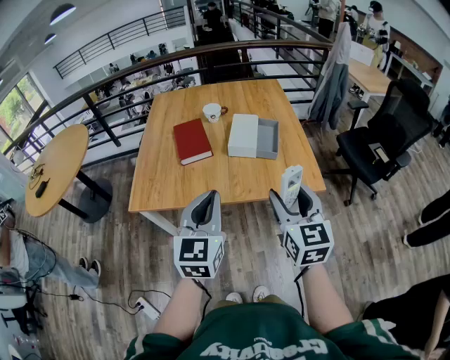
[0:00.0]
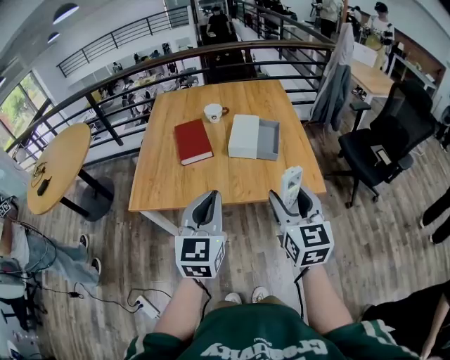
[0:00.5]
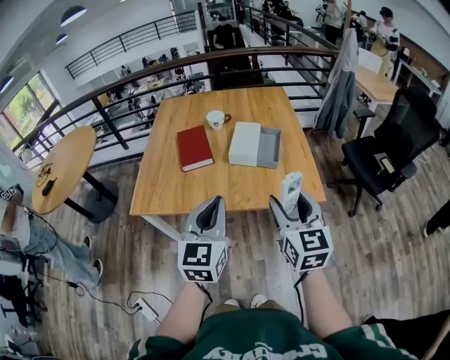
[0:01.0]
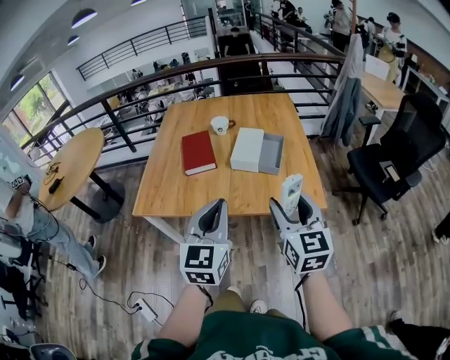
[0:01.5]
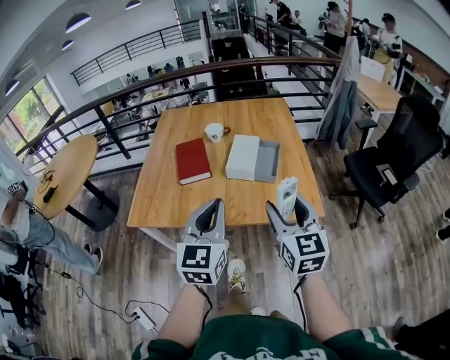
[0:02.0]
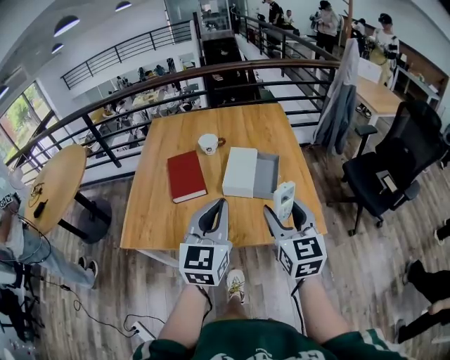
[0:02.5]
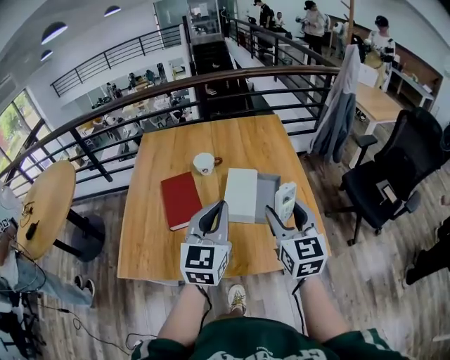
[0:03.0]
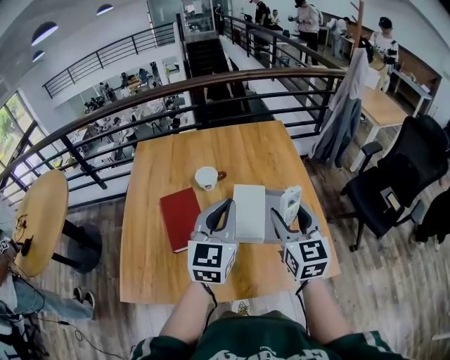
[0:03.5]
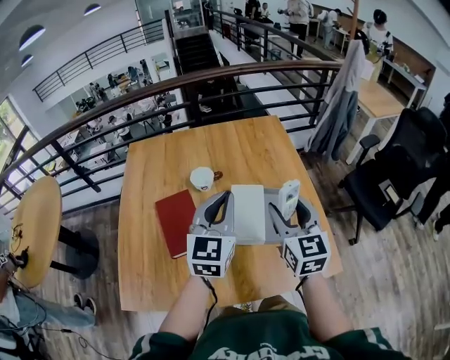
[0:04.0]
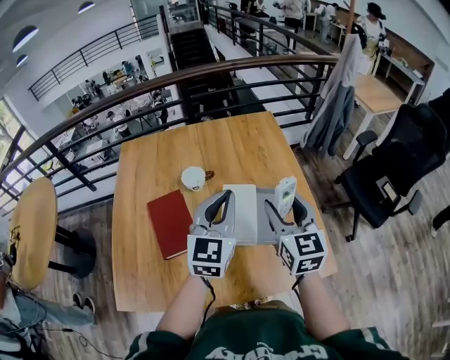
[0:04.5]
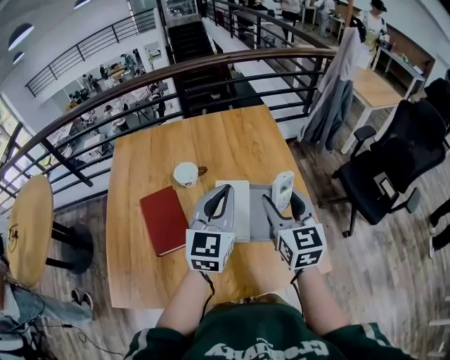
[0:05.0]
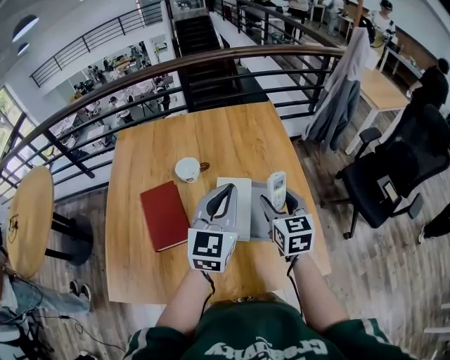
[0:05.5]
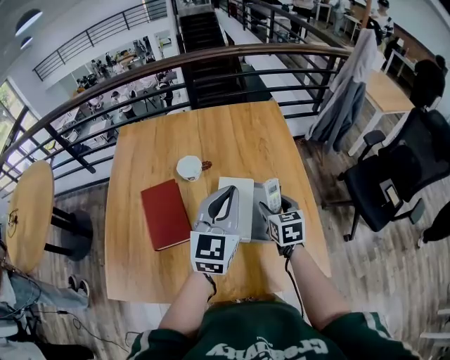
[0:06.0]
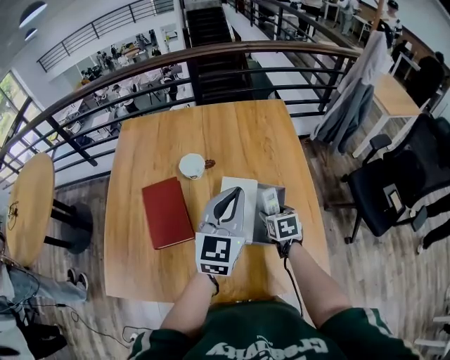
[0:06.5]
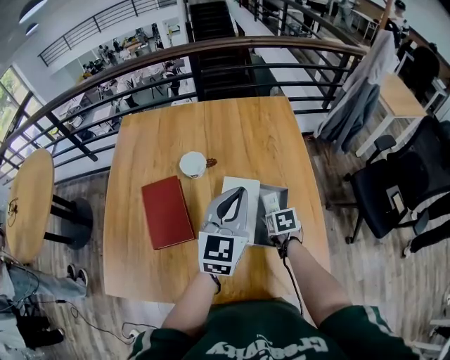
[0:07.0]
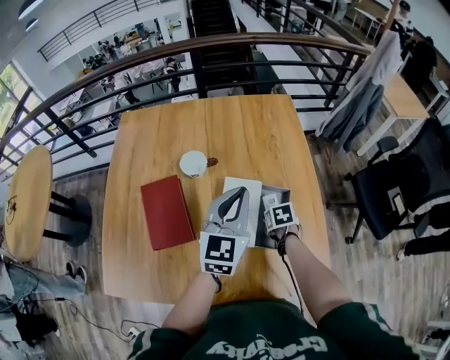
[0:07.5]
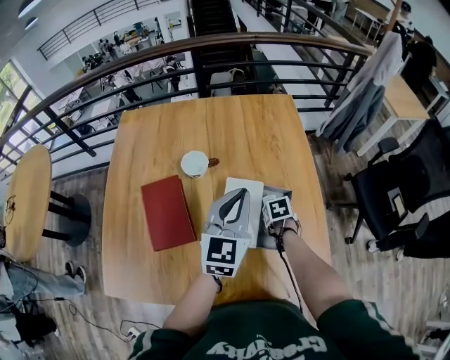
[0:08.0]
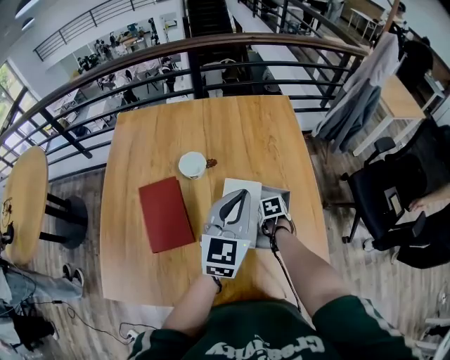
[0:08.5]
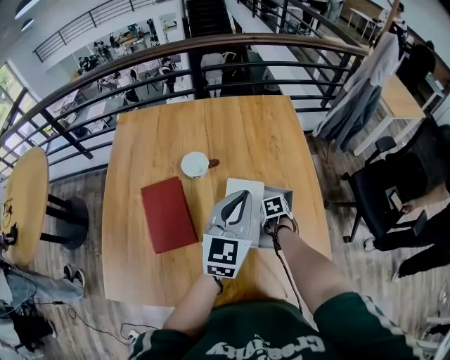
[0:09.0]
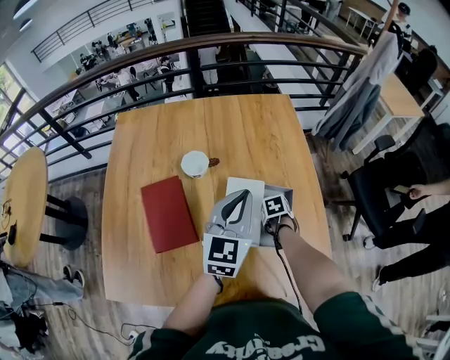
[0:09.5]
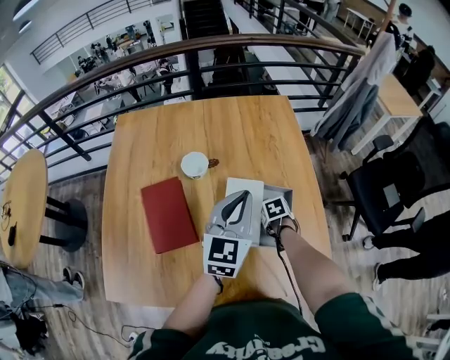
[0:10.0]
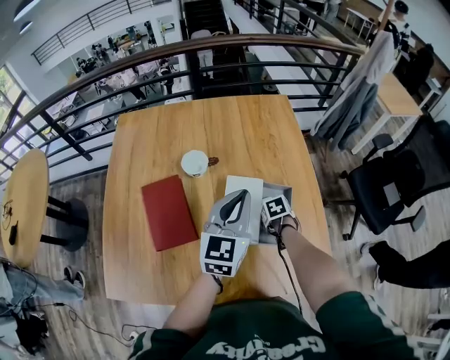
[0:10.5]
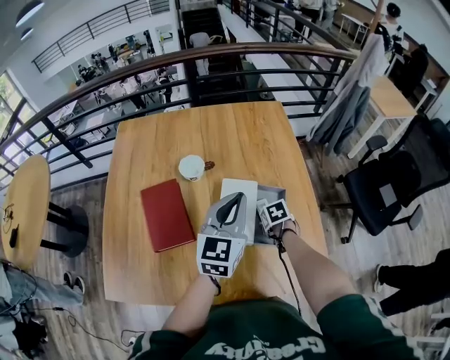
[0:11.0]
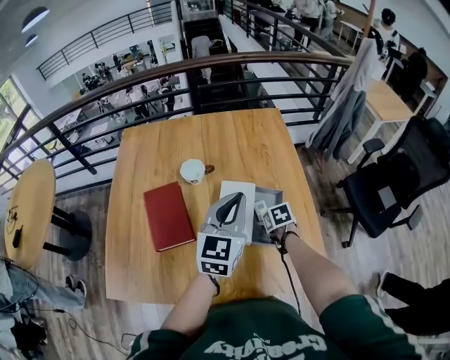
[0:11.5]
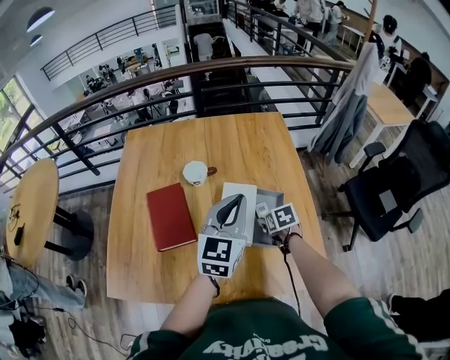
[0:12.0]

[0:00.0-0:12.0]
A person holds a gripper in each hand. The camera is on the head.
0:00.0 to 0:02.0: The right gripper is displaced forward by some 5 cm. The left gripper travels to the right by approximately 5 cm.
0:02.0 to 0:04.0: Both grippers travel together forward, some 35 cm.
0:04.0 to 0:06.0: The right gripper moves downward and forward, about 20 cm, and turns by approximately 30 degrees, while the left gripper travels to the right by some 5 cm.
0:06.0 to 0:08.0: The right gripper travels downward by some 15 cm, and points its fingers approximately 40 degrees further downward. The left gripper changes place by some 5 cm.
0:08.0 to 0:10.0: The grippers move only a little.
0:10.0 to 0:12.0: The right gripper travels upward by about 10 cm, and rotates roughly 20 degrees. Meanwhile the left gripper shifts by approximately 5 cm.

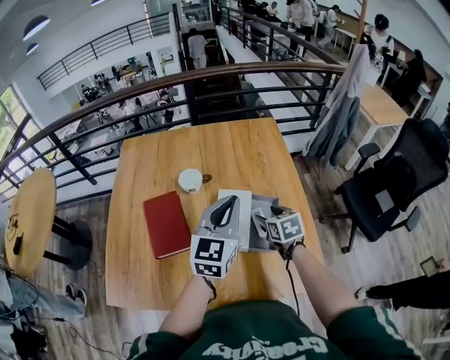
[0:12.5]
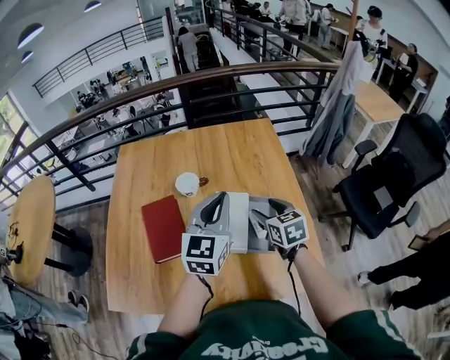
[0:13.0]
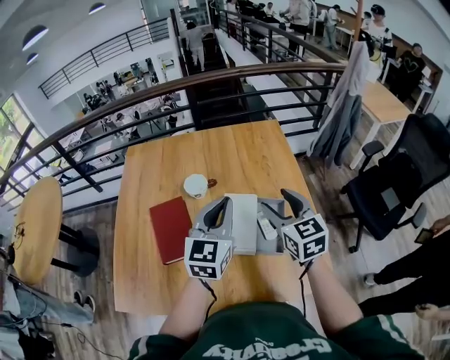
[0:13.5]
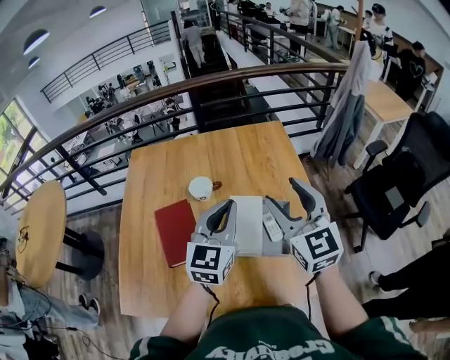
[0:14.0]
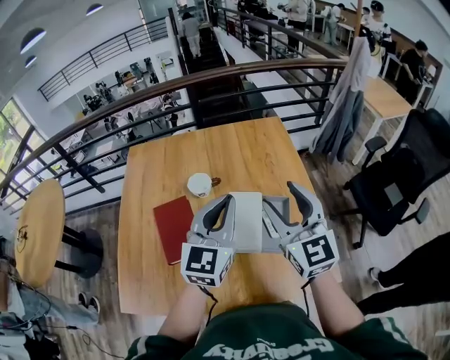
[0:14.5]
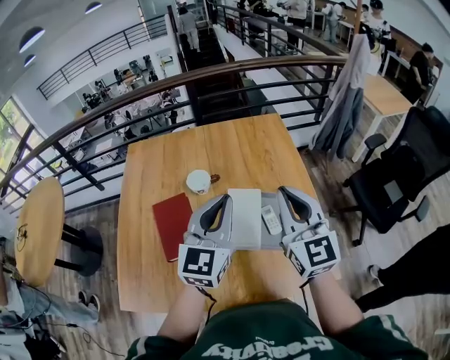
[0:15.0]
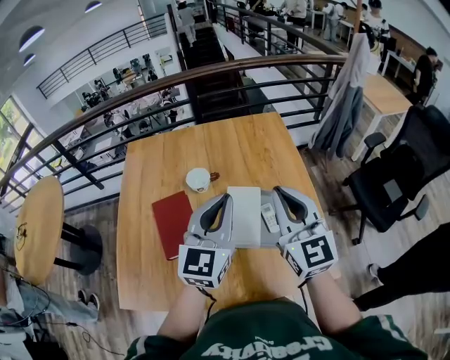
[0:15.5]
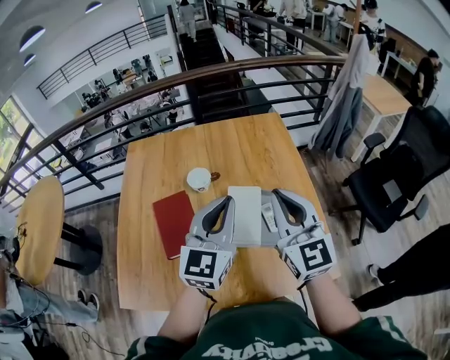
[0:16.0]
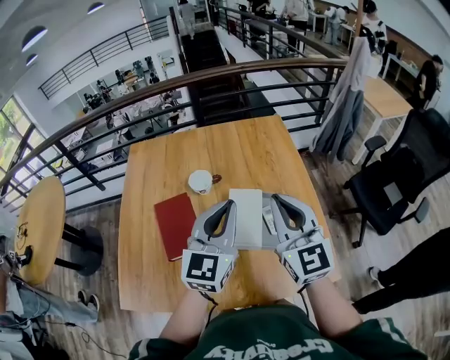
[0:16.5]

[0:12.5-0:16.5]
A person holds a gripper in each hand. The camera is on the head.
0:12.5 to 0:14.5: The left gripper changes place by about 5 cm, while the right gripper goes approximately 25 cm upward, and points its fingers roughly 40 degrees further upward.
0:14.5 to 0:16.5: The right gripper closes its fingers.

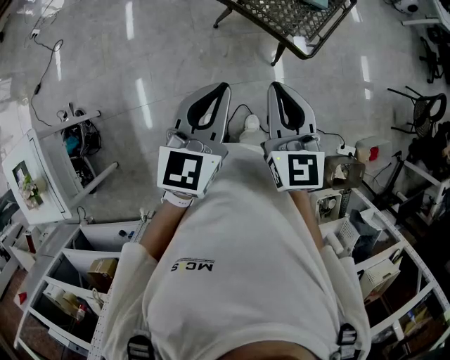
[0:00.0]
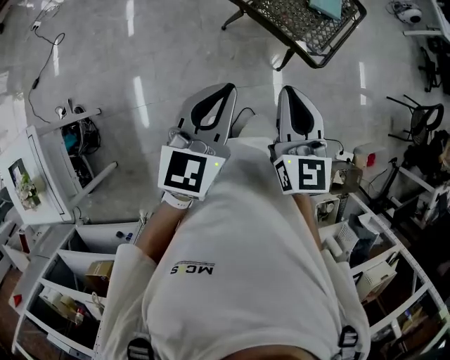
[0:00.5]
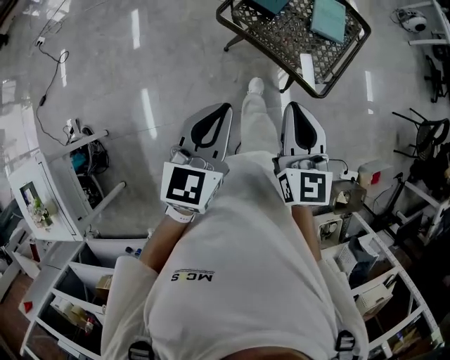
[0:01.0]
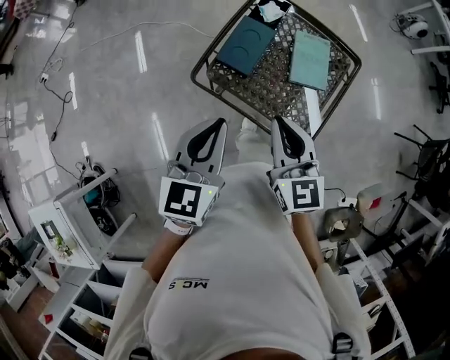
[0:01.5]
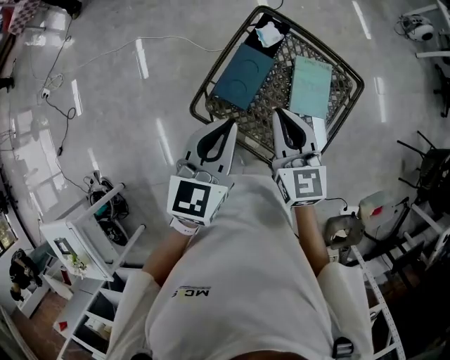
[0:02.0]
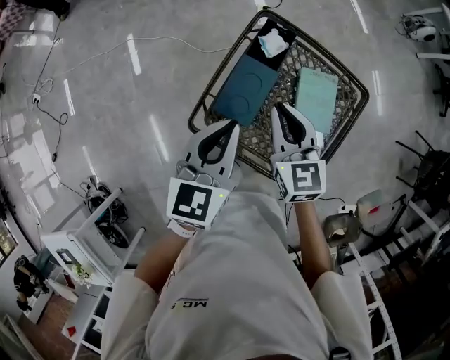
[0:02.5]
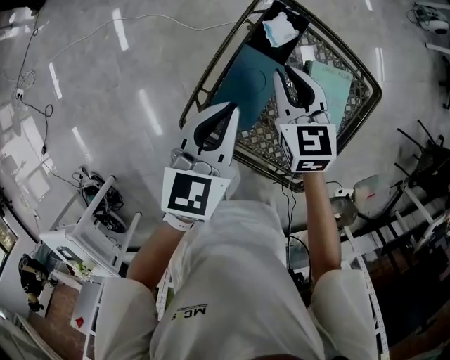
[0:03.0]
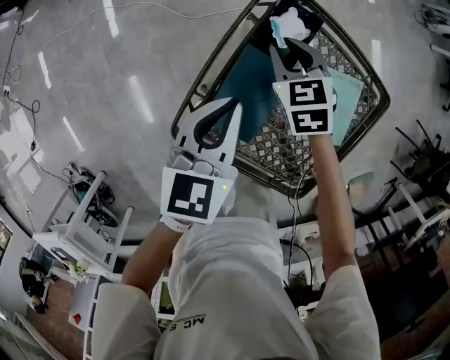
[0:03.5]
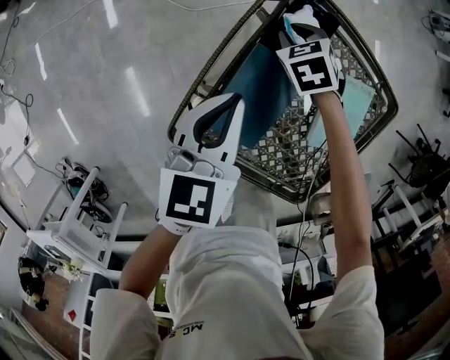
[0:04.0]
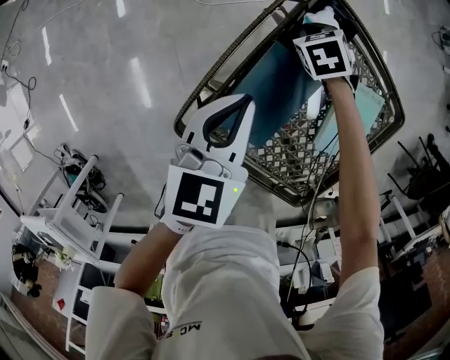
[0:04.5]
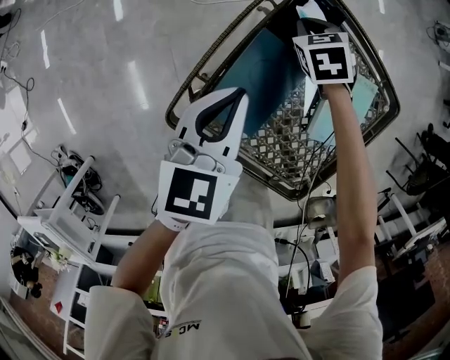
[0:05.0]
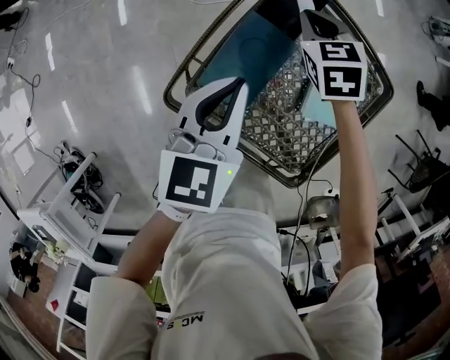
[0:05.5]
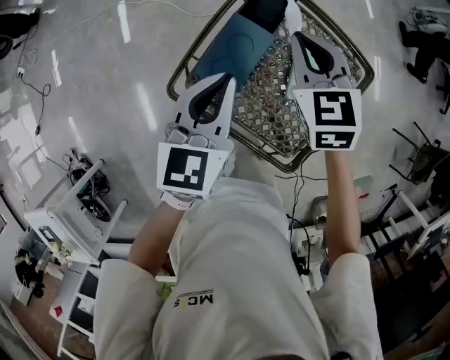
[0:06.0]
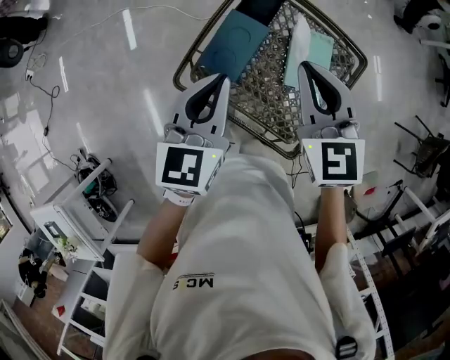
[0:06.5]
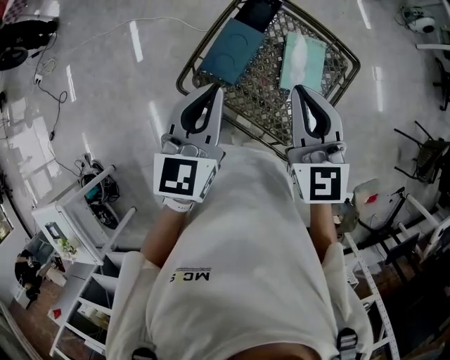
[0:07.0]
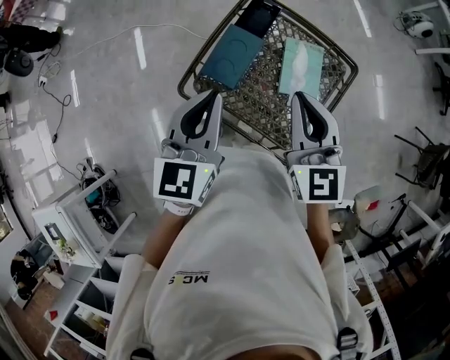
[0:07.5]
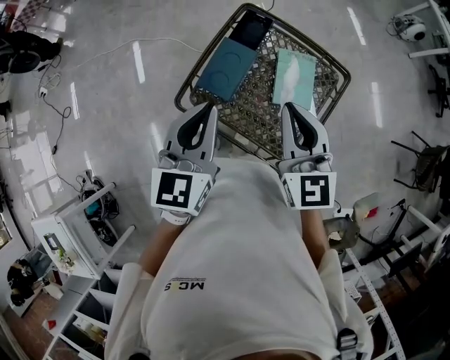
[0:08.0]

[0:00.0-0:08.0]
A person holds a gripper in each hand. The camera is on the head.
0:00.0 to 0:02.0: The two grippers travel together, forward, some 50 cm.
0:02.0 to 0:04.0: The right gripper shifts roughly 50 cm downward and forward, tips its fingers downward by some 50 degrees, and opens its fingers. The left gripper travels downward and forward by some 30 cm.
0:04.0 to 0:06.0: The right gripper travels upward and backward by roughly 30 cm, tips its fingers upward by approximately 30 degrees, and closes up, while the left gripper is displaced upward and backward by some 20 cm.
0:06.0 to 0:08.0: Both grippers travel together backward and upward, some 20 cm. The right gripper changes its angle by about 30 degrees.

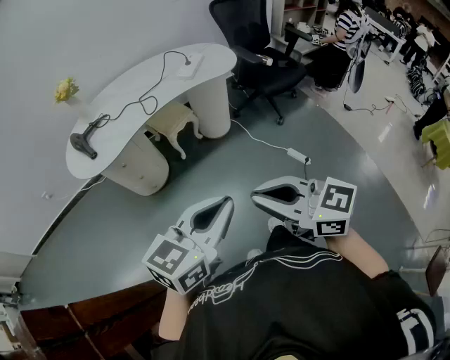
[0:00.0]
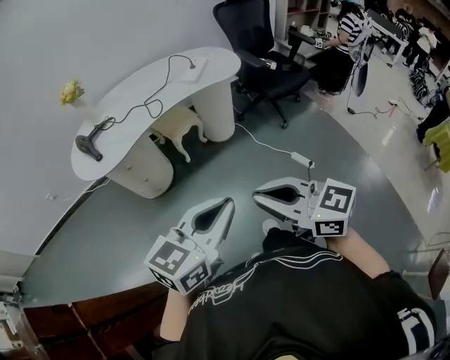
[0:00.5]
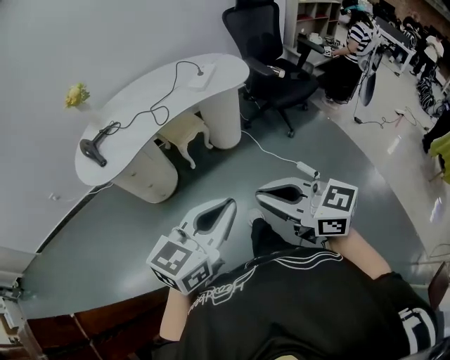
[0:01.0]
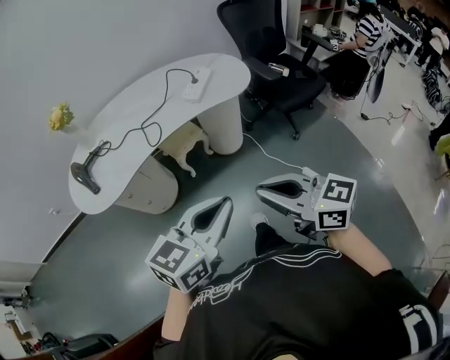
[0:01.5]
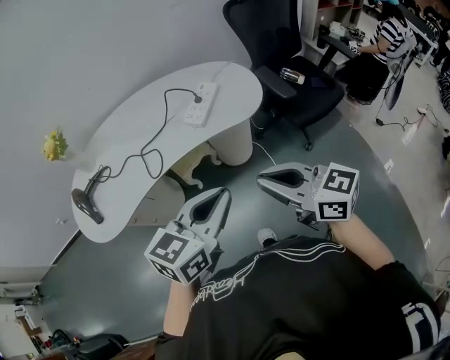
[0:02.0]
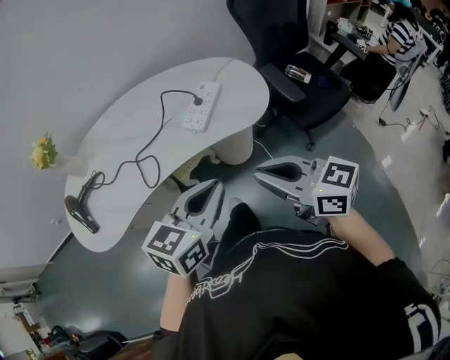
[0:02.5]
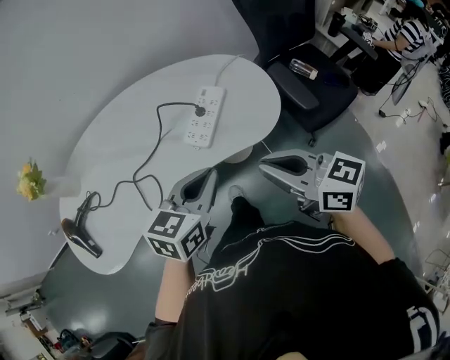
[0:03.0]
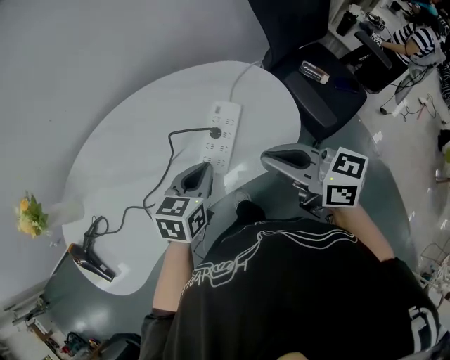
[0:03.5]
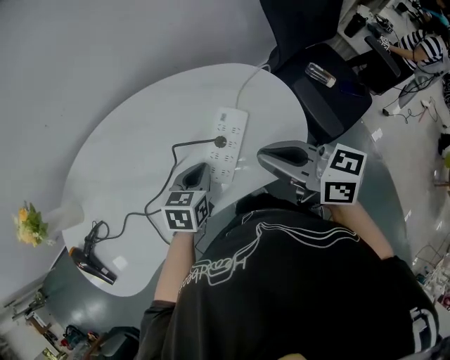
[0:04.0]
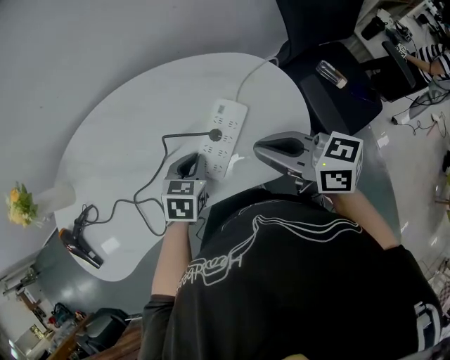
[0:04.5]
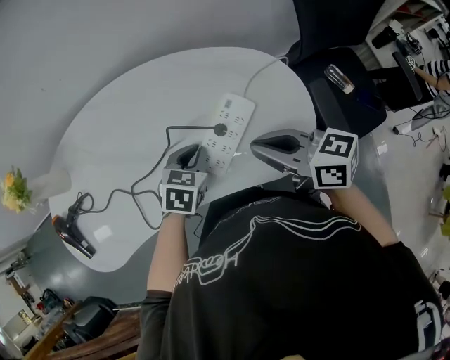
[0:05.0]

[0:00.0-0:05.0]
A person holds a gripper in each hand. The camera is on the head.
0:00.0 to 0:02.5: The two grippers travel together, forward, roughly 50 cm.
0:02.5 to 0:05.0: The left gripper travels forward and downward by about 40 cm, and tilts its fingers approximately 30 degrees downward; the right gripper is displaced forward by some 35 cm.
